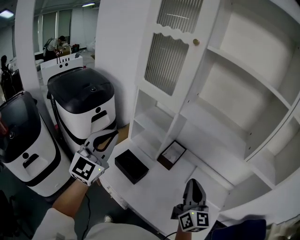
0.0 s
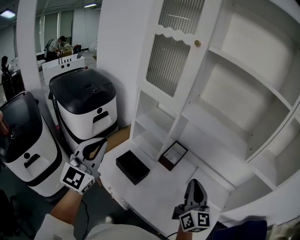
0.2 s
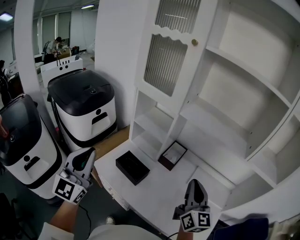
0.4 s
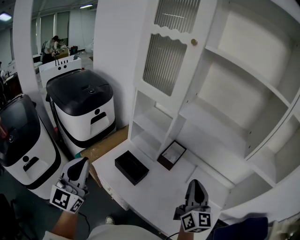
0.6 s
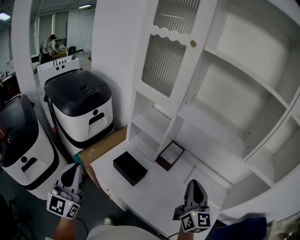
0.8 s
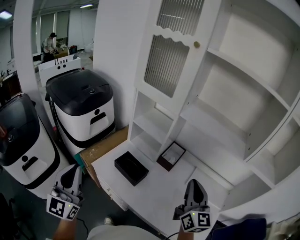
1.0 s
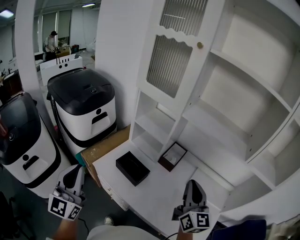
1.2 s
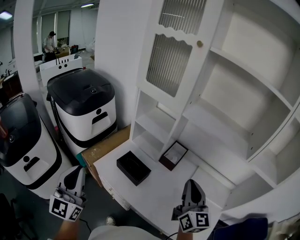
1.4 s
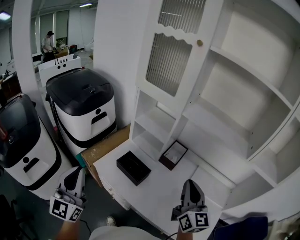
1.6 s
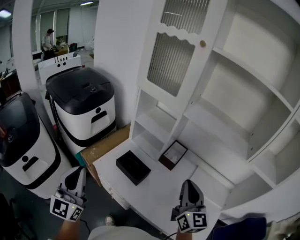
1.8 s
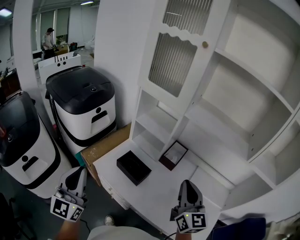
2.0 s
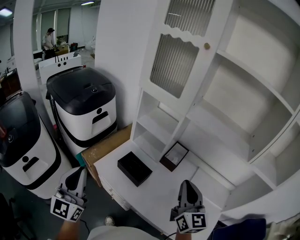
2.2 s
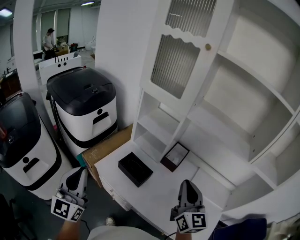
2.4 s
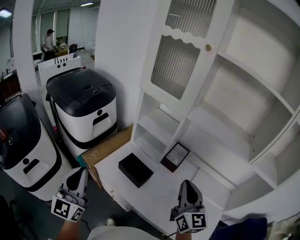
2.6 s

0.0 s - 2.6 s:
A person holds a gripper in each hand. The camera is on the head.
0.0 s - 1.2 s: The left gripper heads backward, to the left and downward, covering roughly 15 cm, and rotates some 20 degrees.
1.2 s - 2.6 s: The right gripper shifts about 5 cm to the left.

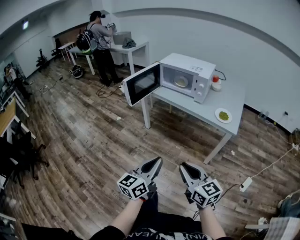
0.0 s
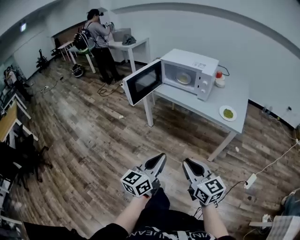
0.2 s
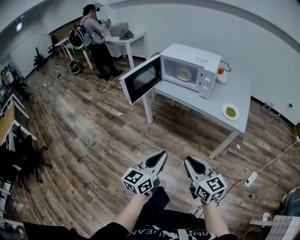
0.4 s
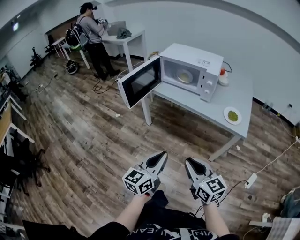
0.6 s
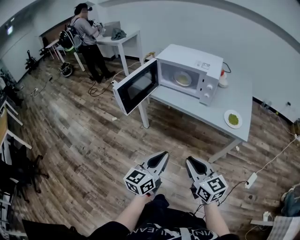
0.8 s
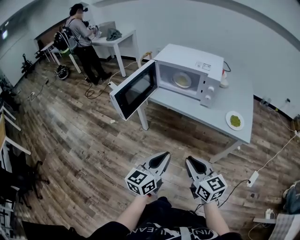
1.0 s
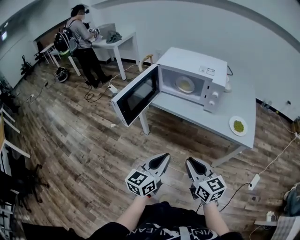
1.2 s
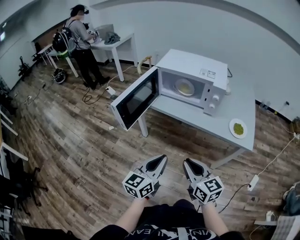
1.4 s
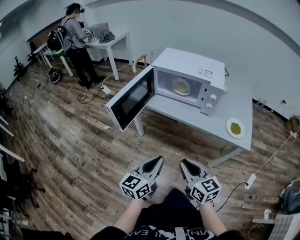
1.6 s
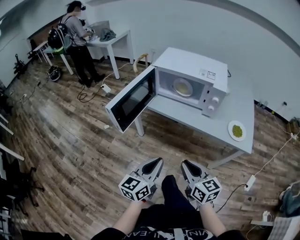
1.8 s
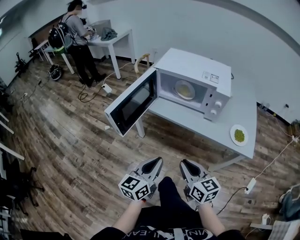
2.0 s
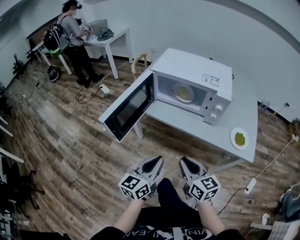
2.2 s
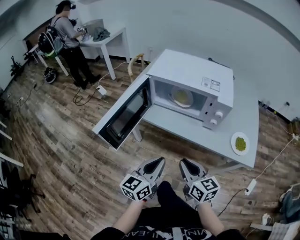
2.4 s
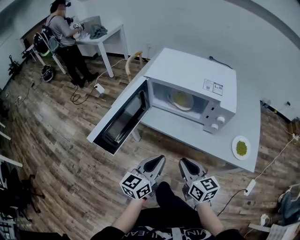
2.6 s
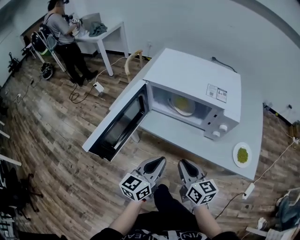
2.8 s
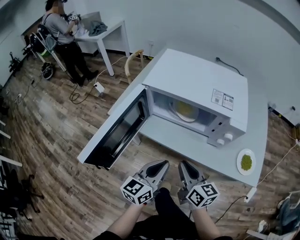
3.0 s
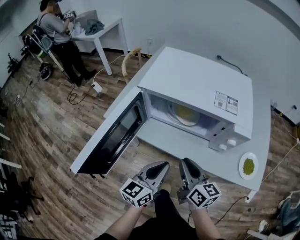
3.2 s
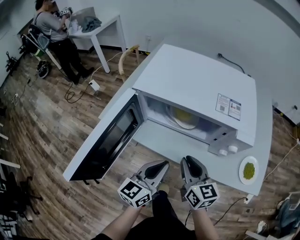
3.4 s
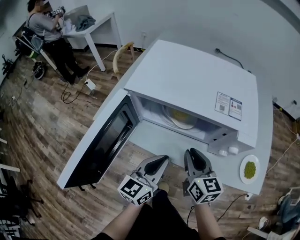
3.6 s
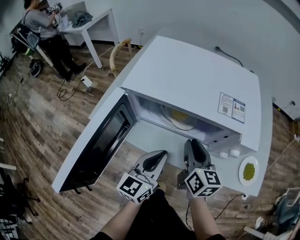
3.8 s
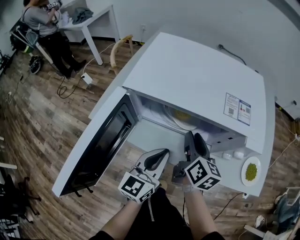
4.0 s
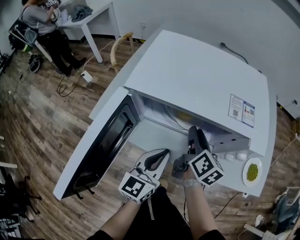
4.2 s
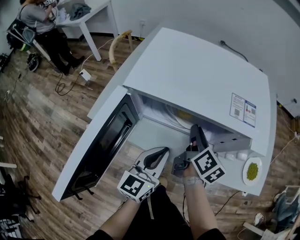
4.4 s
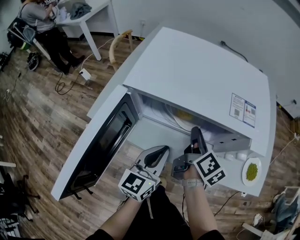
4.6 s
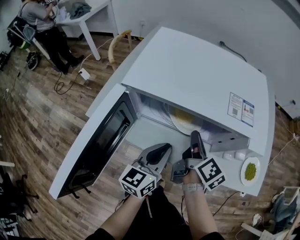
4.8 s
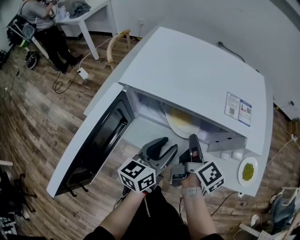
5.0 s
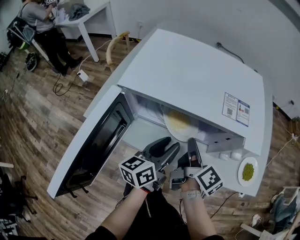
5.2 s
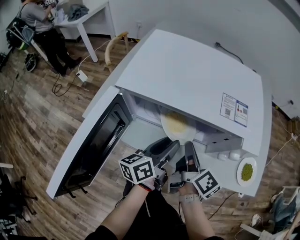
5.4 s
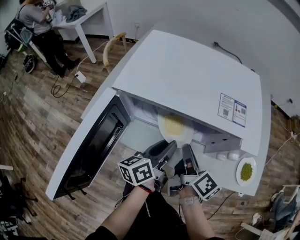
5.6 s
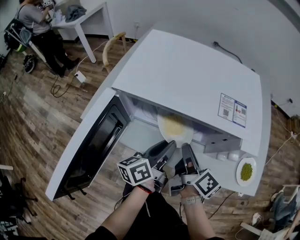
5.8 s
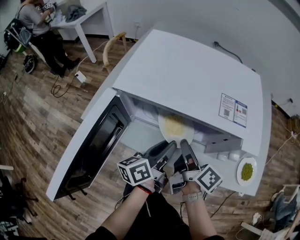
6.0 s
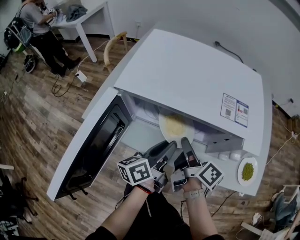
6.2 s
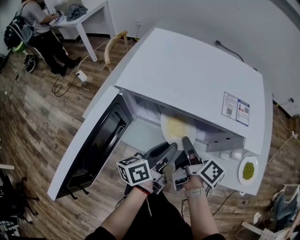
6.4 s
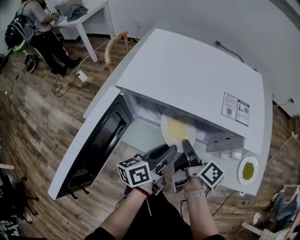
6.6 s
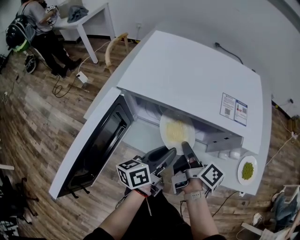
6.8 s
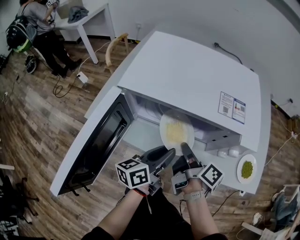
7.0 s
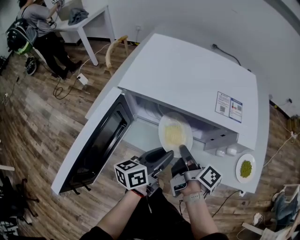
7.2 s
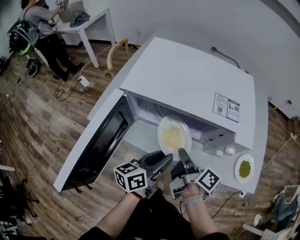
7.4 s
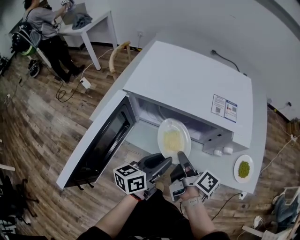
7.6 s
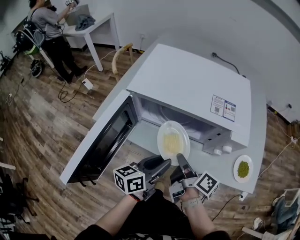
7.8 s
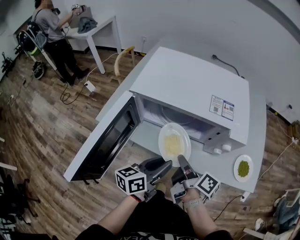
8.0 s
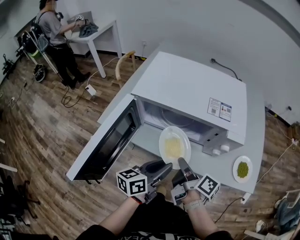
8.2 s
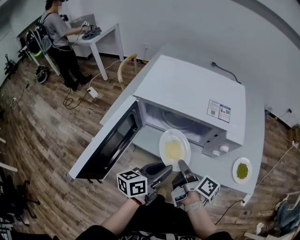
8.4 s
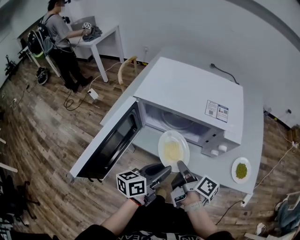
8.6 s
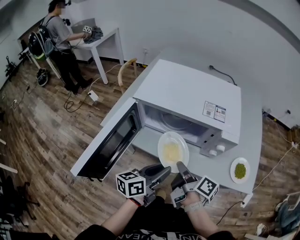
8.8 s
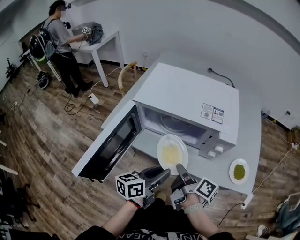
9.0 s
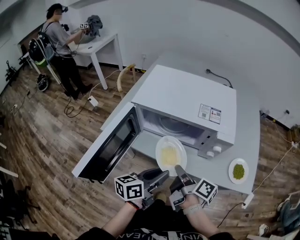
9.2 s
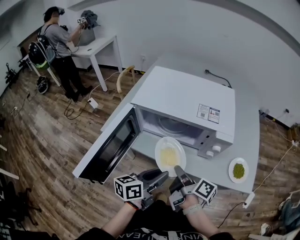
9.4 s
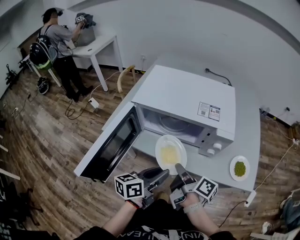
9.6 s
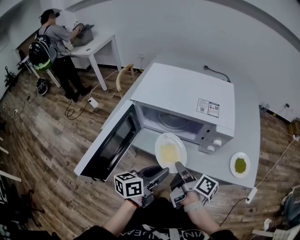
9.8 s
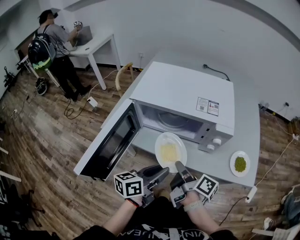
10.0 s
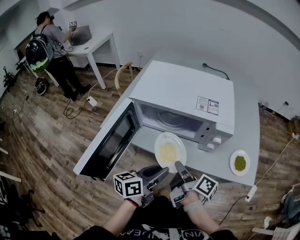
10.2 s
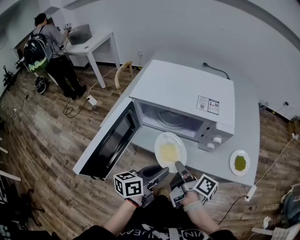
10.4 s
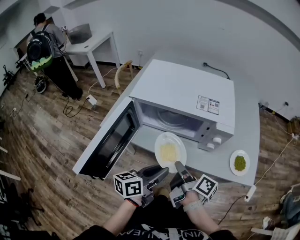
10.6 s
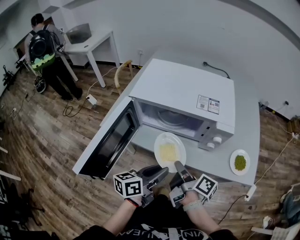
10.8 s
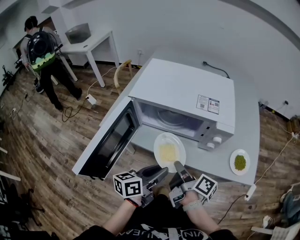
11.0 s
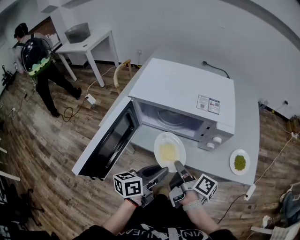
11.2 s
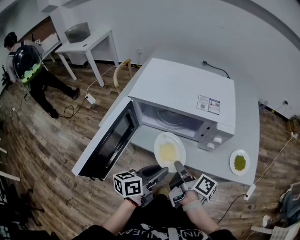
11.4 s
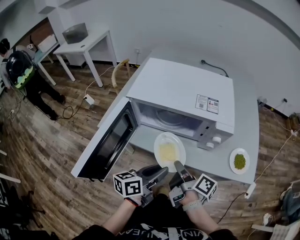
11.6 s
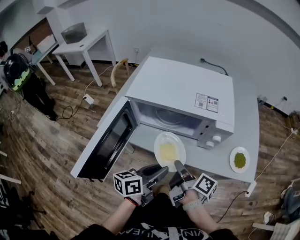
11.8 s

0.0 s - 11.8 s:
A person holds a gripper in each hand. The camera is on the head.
0.0 s - 1.4 s: Both grippers move forward, some 25 cm.
1.4 s - 3.0 s: The grippers both shift forward by roughly 25 cm.
3.0 s - 4.4 s: The left gripper heads forward, covering about 10 cm. Meanwhile the right gripper shifts approximately 20 cm forward, and changes its angle by some 40 degrees.
4.4 s - 6.0 s: The right gripper changes its angle by approximately 20 degrees, while the left gripper ends up about 5 cm from where it was, and rolls counterclockwise, seen from behind, by approximately 40 degrees.
6.0 s - 7.4 s: The left gripper goes about 5 cm backward.
7.4 s - 8.8 s: Both grippers move backward, about 5 cm.
8.8 s - 10.4 s: There are only small adjustments of the grippers.
10.4 s - 11.8 s: Neither gripper changes place.

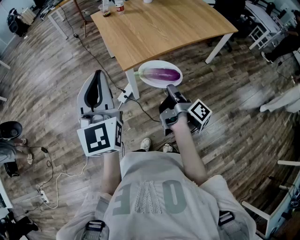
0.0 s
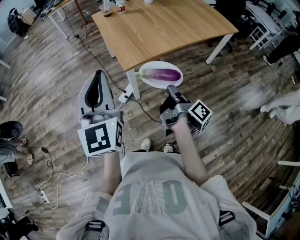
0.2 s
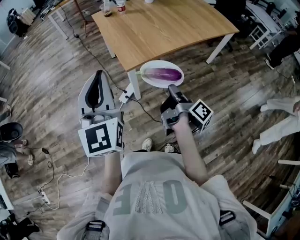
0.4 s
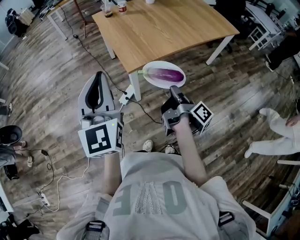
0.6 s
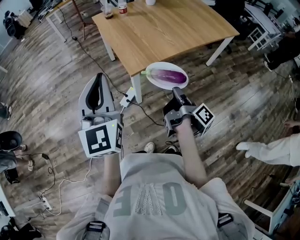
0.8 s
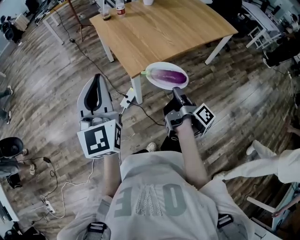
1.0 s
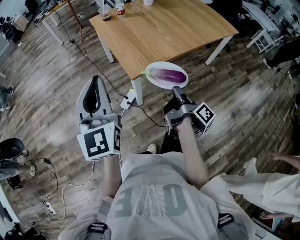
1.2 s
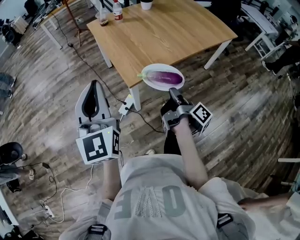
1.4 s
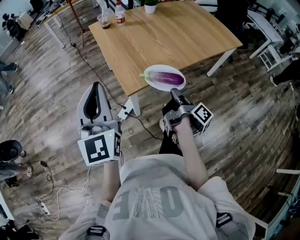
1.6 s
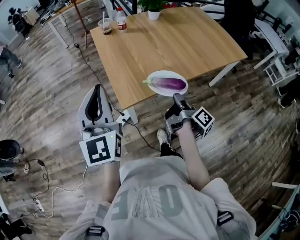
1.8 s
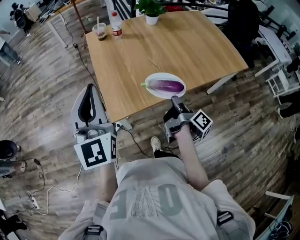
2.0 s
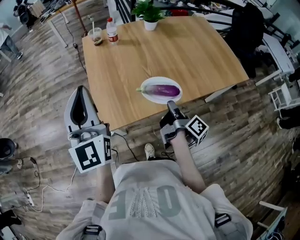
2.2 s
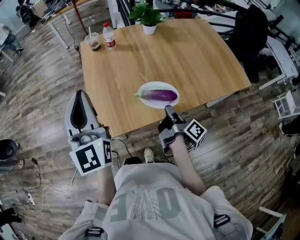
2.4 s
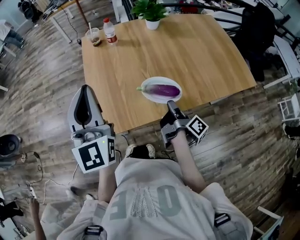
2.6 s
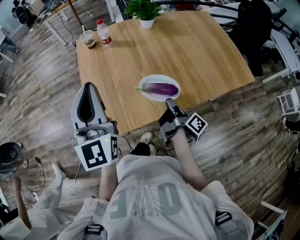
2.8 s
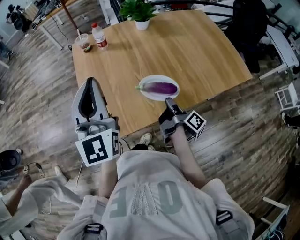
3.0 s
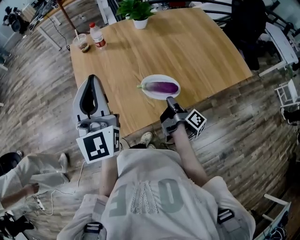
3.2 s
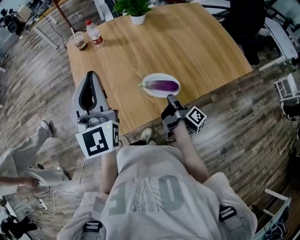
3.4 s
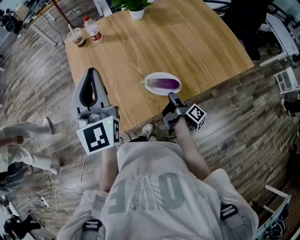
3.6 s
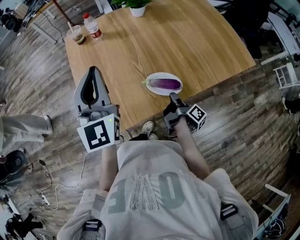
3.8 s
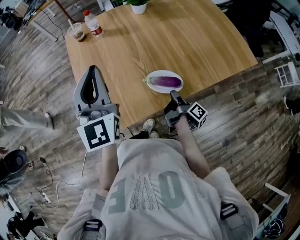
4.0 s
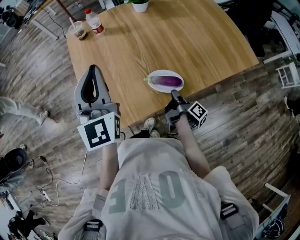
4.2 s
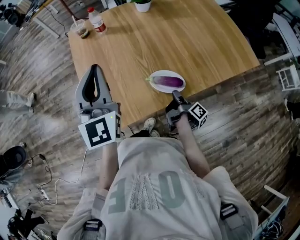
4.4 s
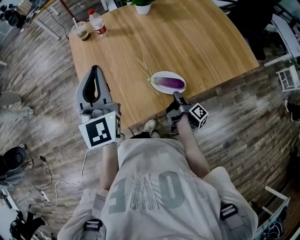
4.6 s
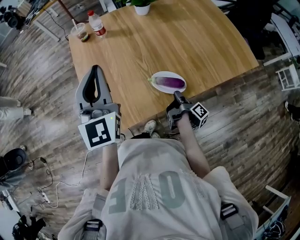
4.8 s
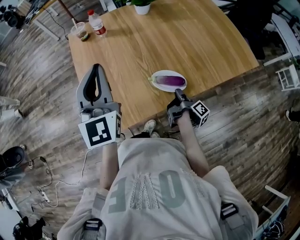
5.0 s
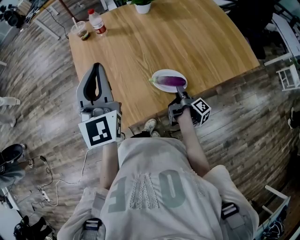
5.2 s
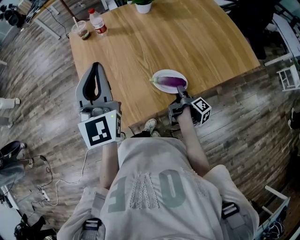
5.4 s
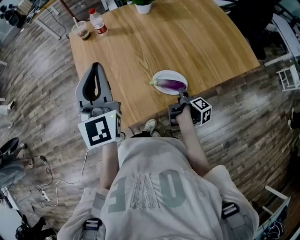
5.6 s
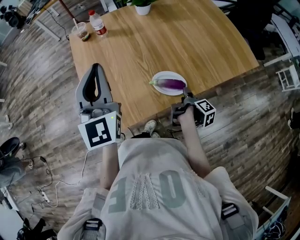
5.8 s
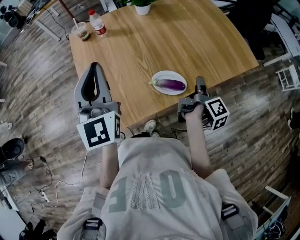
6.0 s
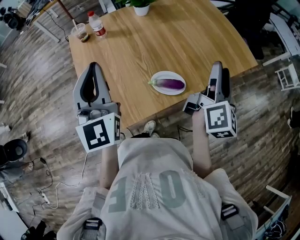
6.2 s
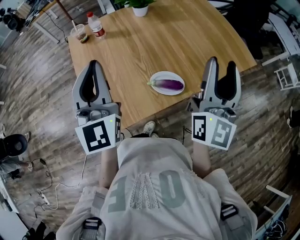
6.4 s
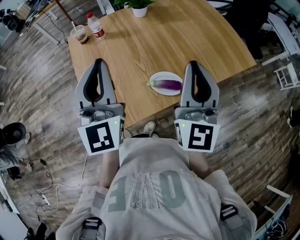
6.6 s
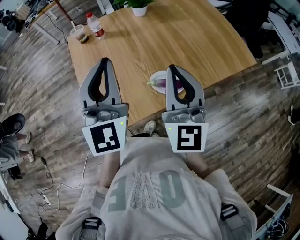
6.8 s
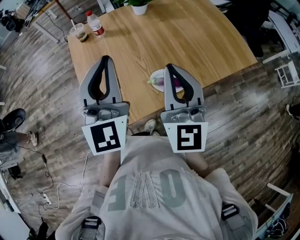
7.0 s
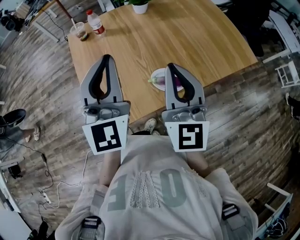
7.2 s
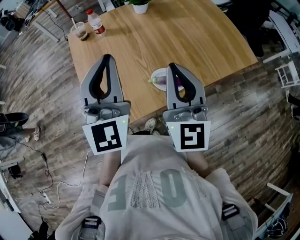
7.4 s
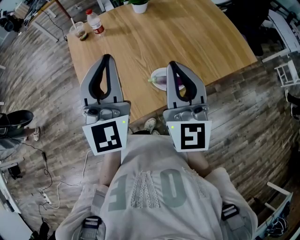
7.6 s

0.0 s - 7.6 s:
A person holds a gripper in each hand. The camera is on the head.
0.0 s - 1.6 s: The left gripper moves roughly 15 cm.
1.6 s - 3.0 s: The left gripper moves some 30 cm.
3.0 s - 4.6 s: The left gripper moves roughly 5 cm.
6.0 s - 7.6 s: The left gripper changes place by about 5 cm.

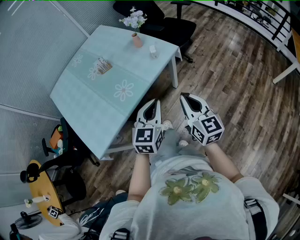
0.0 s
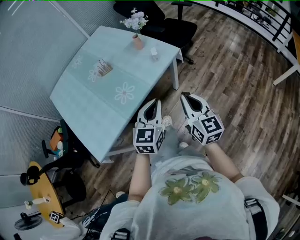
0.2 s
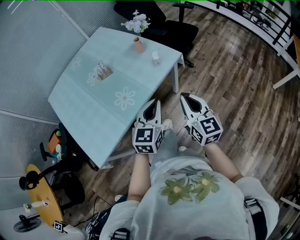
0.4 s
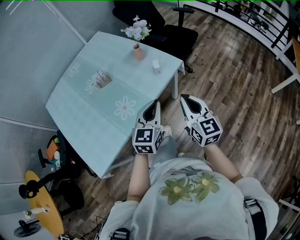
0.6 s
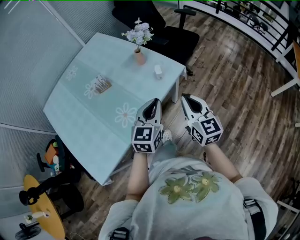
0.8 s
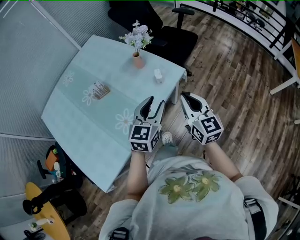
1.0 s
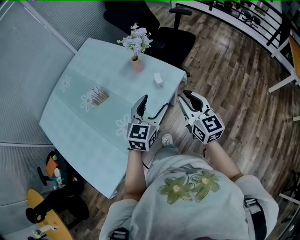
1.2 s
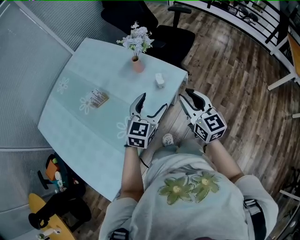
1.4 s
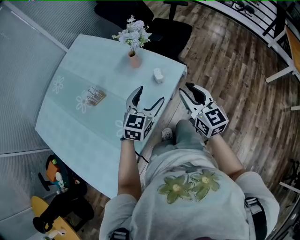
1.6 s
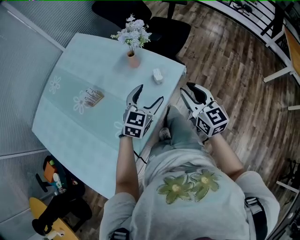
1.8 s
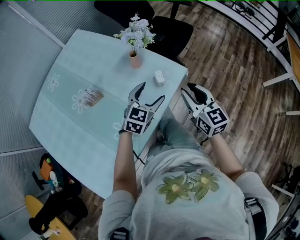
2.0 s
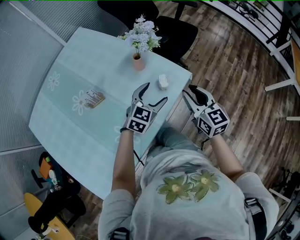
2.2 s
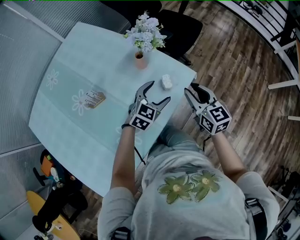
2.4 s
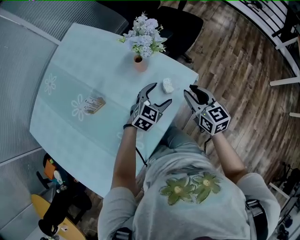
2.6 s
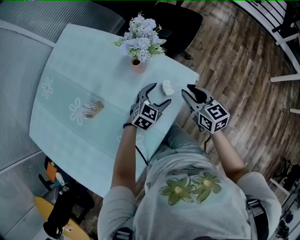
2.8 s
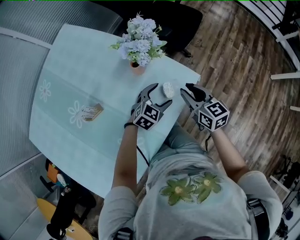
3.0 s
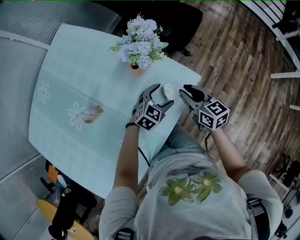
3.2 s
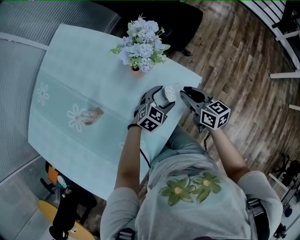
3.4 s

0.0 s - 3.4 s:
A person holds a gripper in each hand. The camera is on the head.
0.0 s - 1.6 s: The two grippers go approximately 30 cm forward. The left gripper swivels some 20 degrees, and opens its fingers, while the right gripper opens.
1.6 s - 3.4 s: Both grippers travel together downward and forward, about 25 cm. The left gripper turns by some 30 degrees. Meanwhile the right gripper changes its angle by some 30 degrees.
